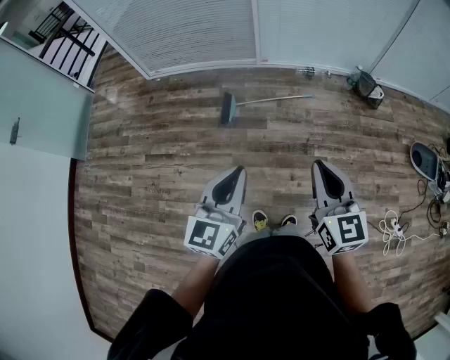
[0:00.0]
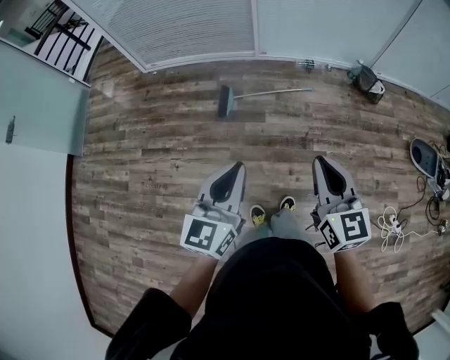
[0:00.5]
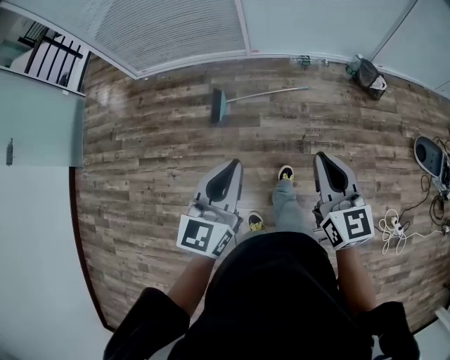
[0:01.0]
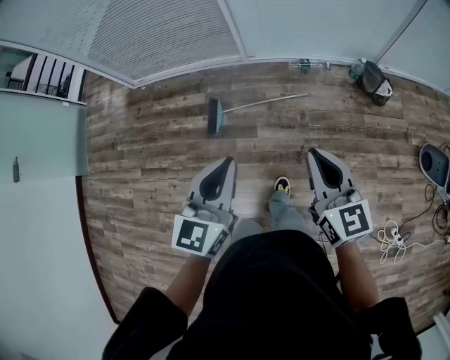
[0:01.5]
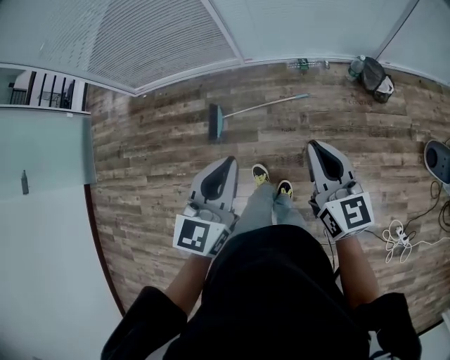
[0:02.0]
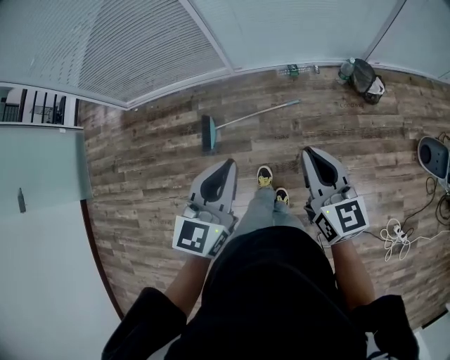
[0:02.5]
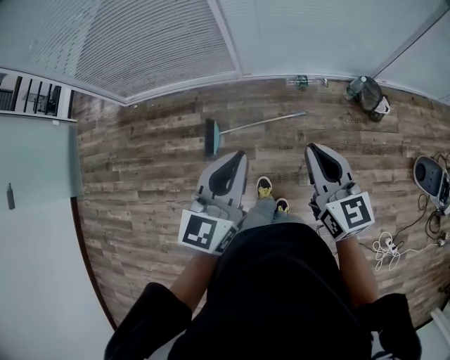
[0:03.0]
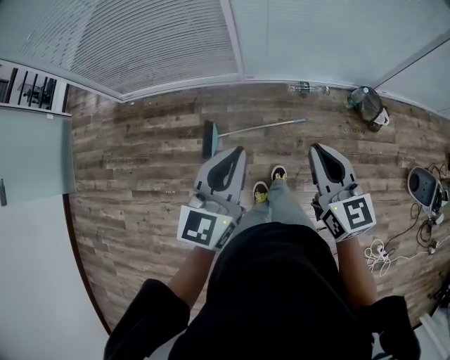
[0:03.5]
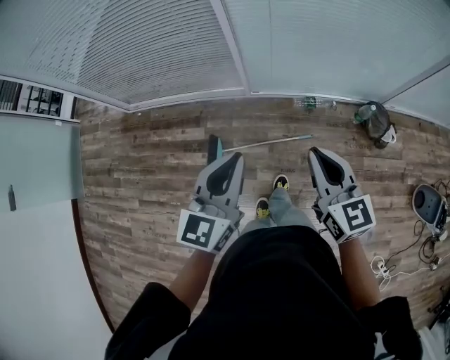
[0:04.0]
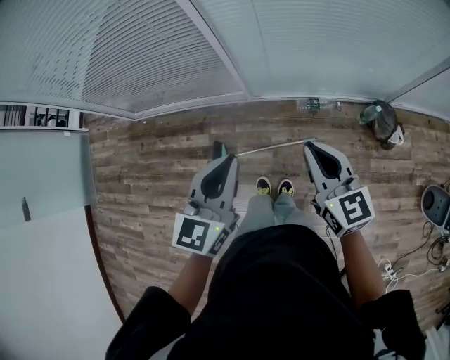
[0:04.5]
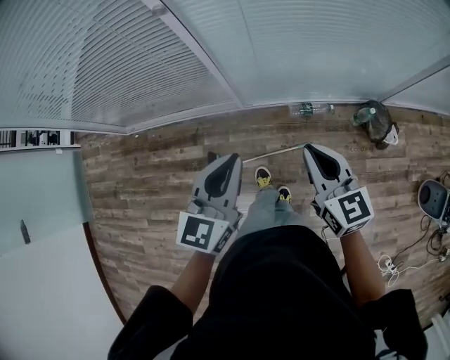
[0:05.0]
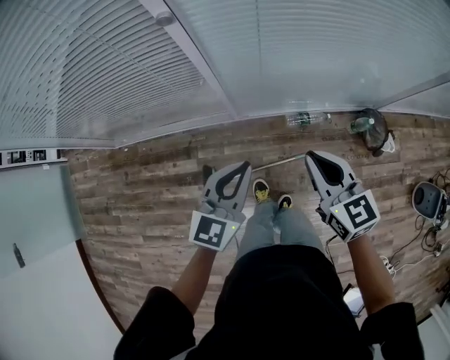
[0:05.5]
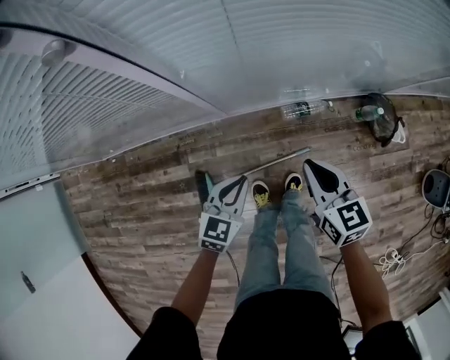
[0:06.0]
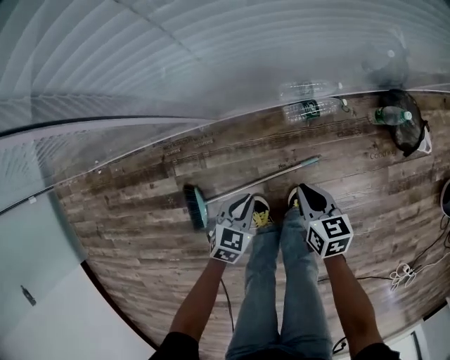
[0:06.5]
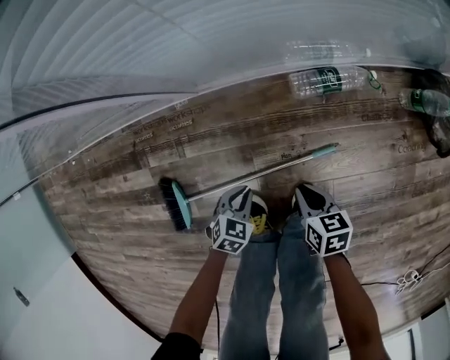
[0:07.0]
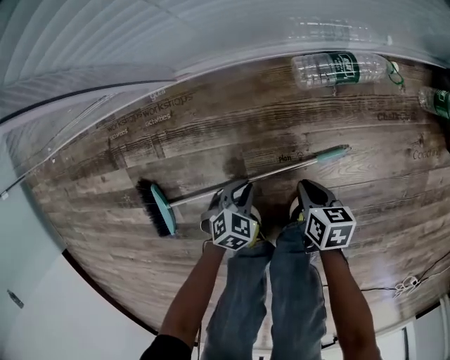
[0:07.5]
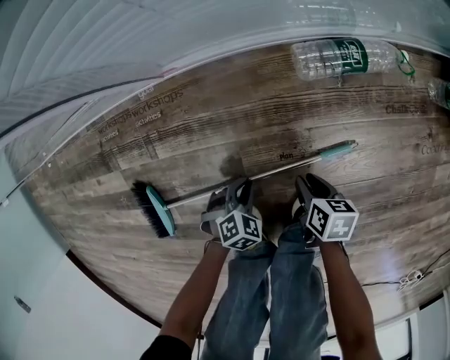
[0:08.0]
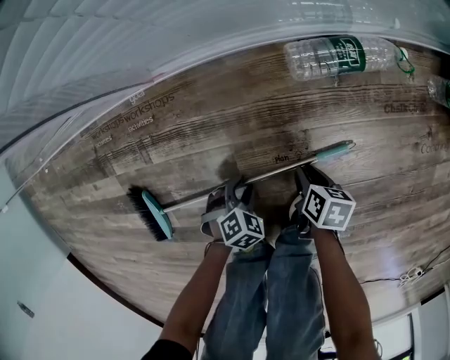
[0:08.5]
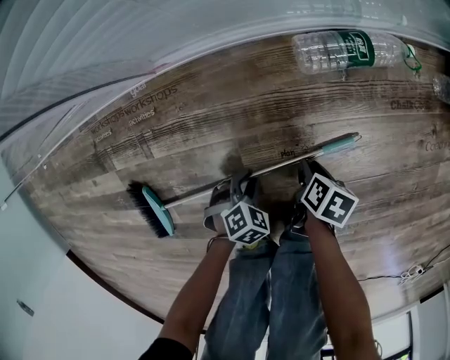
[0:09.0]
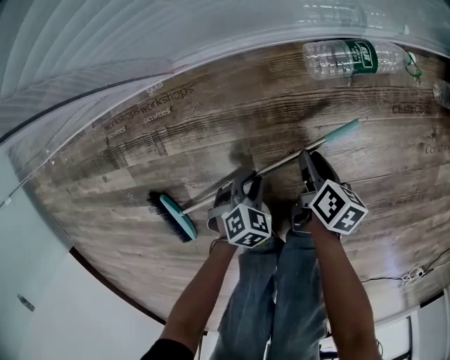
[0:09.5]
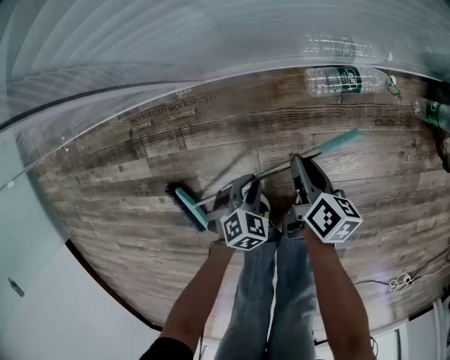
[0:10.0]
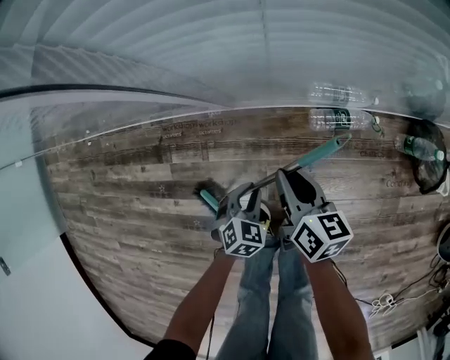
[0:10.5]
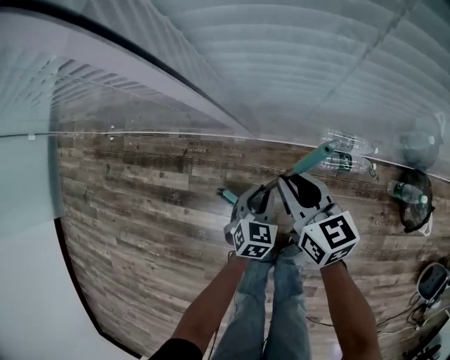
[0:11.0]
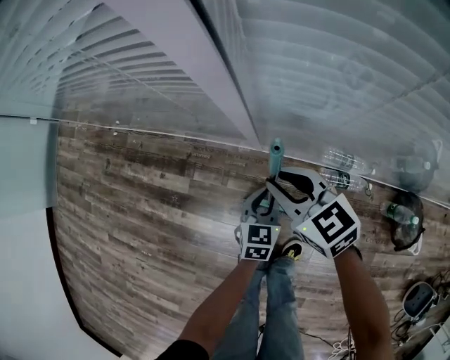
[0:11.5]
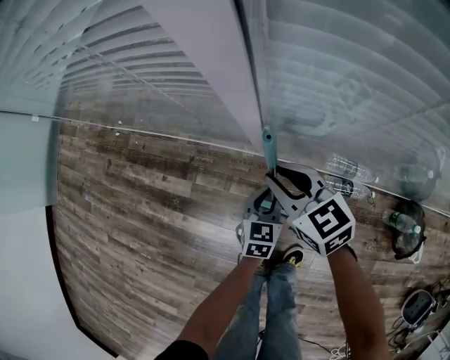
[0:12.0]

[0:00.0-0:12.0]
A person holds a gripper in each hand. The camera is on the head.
0:00.0 to 0:02.0: The two grippers go about 40 cm forward and to the right.
0:02.0 to 0:04.0: The grippers both shift forward by approximately 25 cm.
0:04.0 to 0:06.0: The left gripper shifts about 40 cm downward and forward, and turns by about 30 degrees; the right gripper is displaced forward and downward by approximately 35 cm.
0:06.0 to 0:08.0: The two grippers go some 70 cm downward. The left gripper tips its fingers downward by approximately 40 degrees. Meanwhile the right gripper tips its fingers downward by approximately 30 degrees, and opens up.
0:08.0 to 0:10.0: The grippers both shift upward by approximately 15 cm. The right gripper changes its angle by some 30 degrees.
0:10.0 to 0:12.0: Both grippers travel together upward, about 35 cm. The left gripper tilts its fingers some 30 degrees upward; the right gripper rotates around the line of its fingers by roughly 70 degrees, counterclockwise from behind.

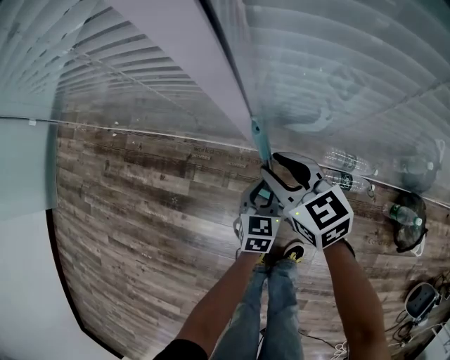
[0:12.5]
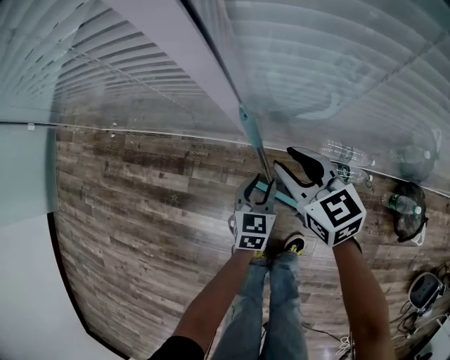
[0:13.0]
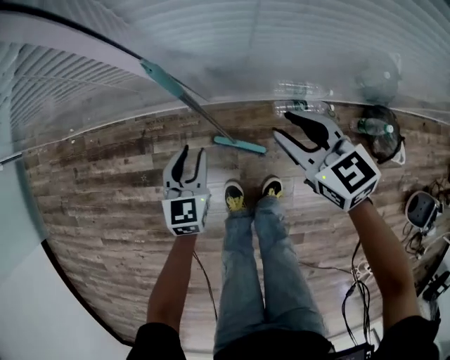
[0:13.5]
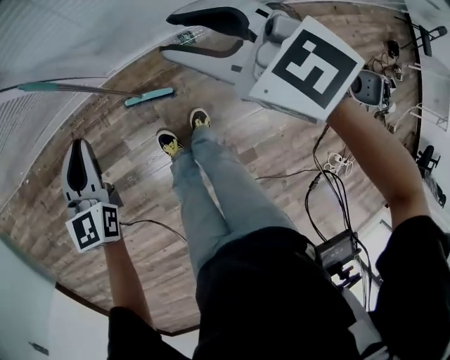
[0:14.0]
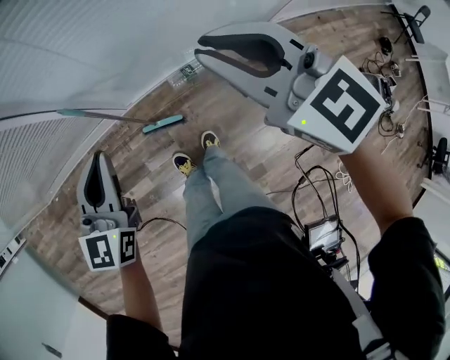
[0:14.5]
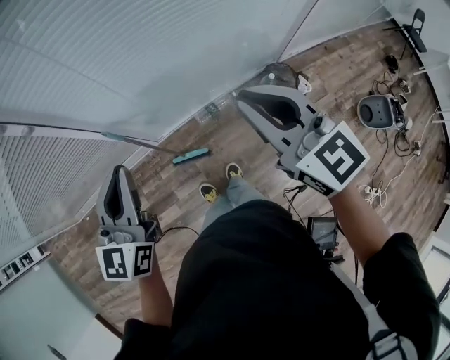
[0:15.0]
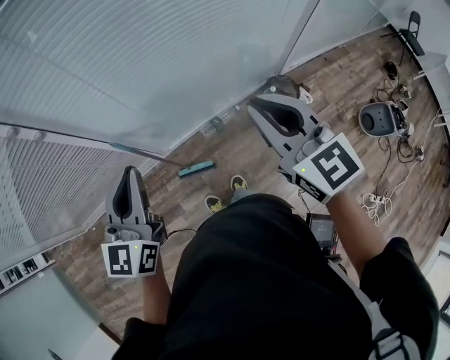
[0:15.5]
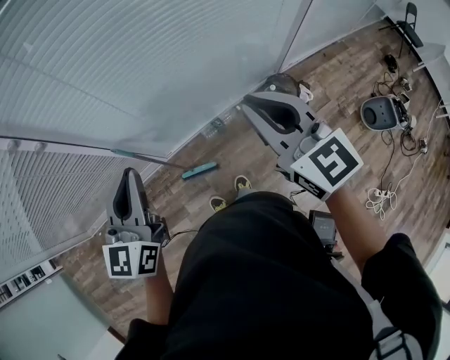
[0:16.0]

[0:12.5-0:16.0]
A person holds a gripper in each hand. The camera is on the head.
0:12.5 to 0:14.5: The two grippers go about 50 cm upward. The left gripper turns by approximately 40 degrees, and closes its fingers. The right gripper swivels roughly 30 degrees.
0:14.5 to 0:16.0: The right gripper travels upward, to the right and backward by approximately 10 cm, and turns by some 20 degrees, while the left gripper heads upward, covering about 15 cm.

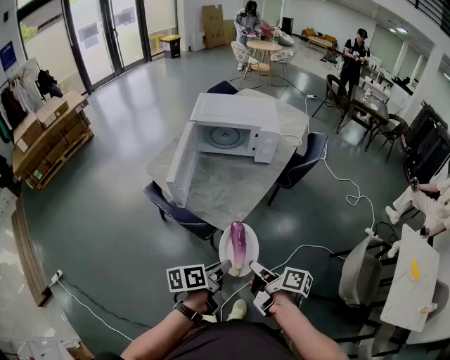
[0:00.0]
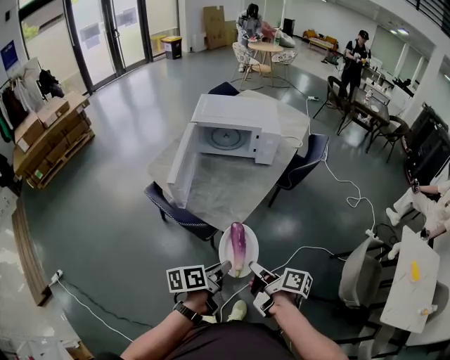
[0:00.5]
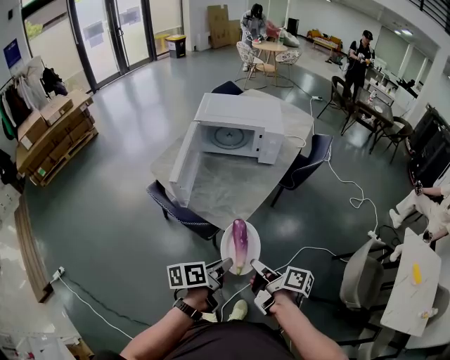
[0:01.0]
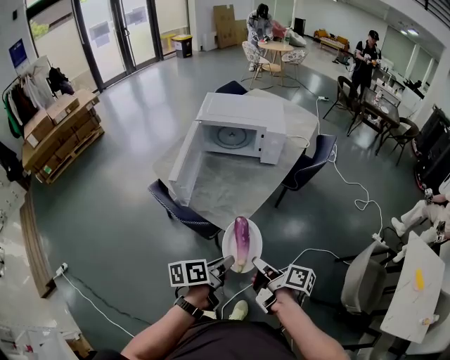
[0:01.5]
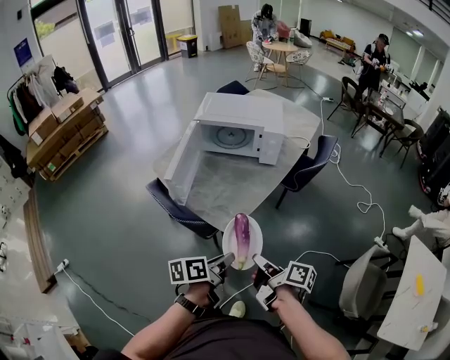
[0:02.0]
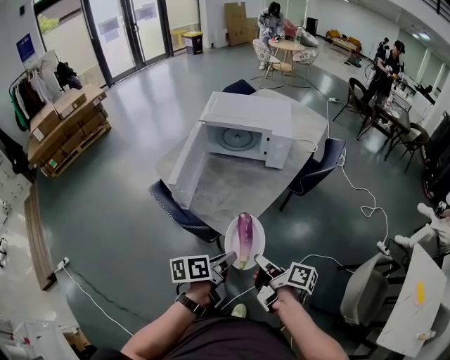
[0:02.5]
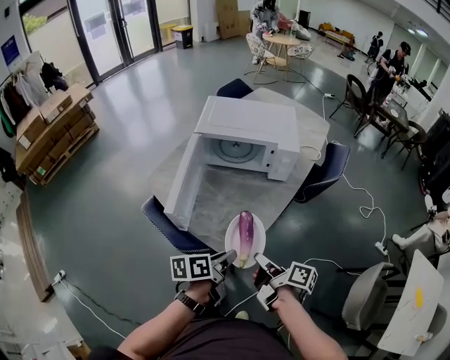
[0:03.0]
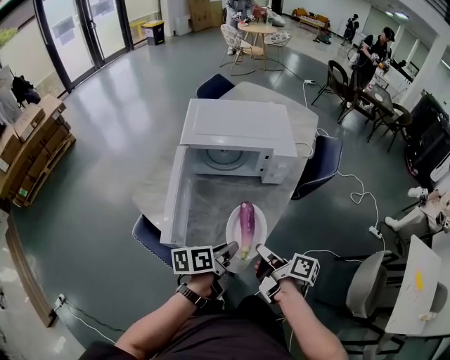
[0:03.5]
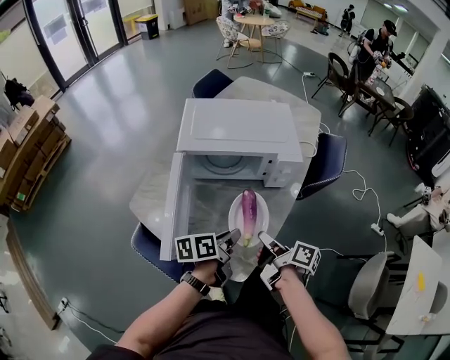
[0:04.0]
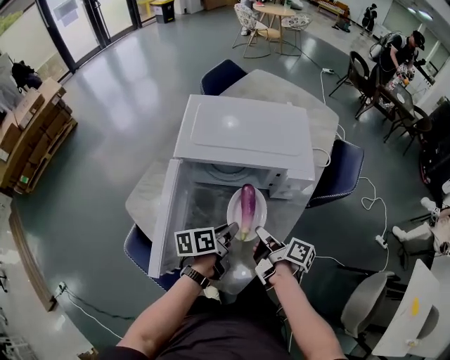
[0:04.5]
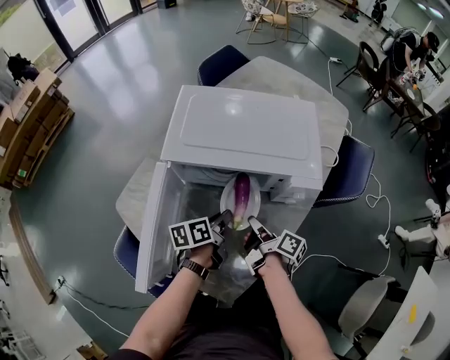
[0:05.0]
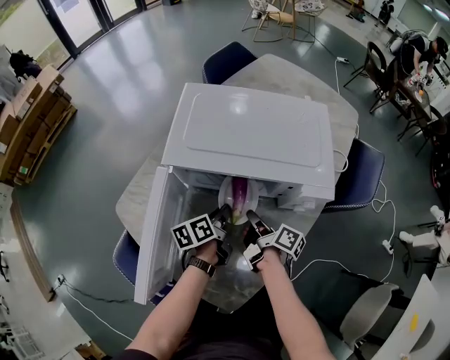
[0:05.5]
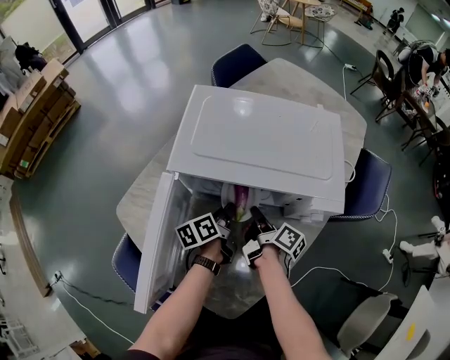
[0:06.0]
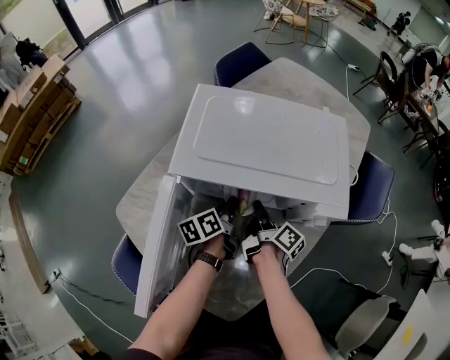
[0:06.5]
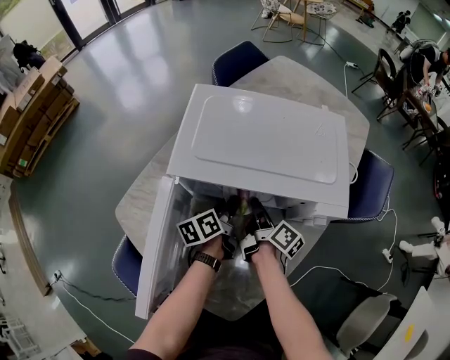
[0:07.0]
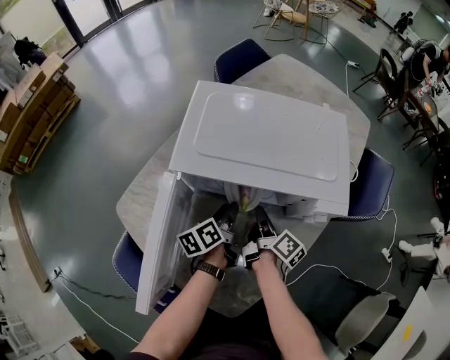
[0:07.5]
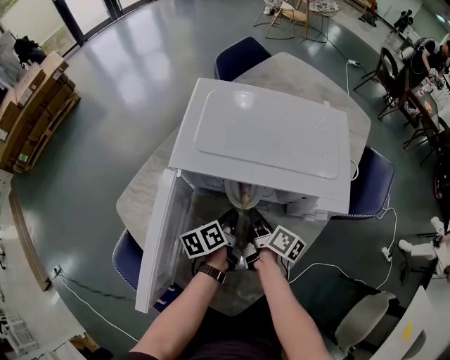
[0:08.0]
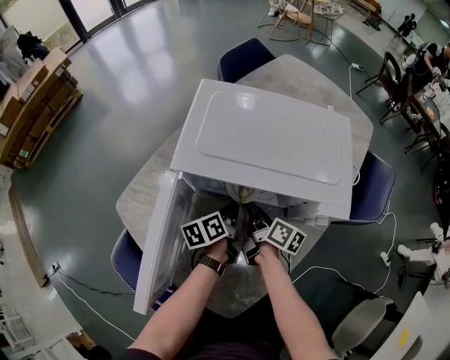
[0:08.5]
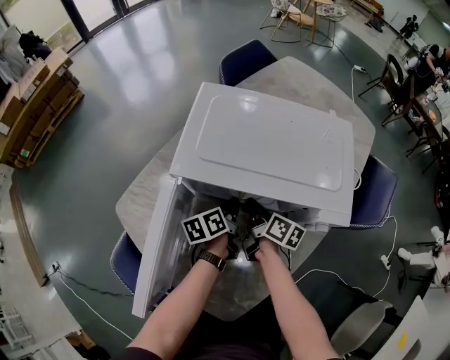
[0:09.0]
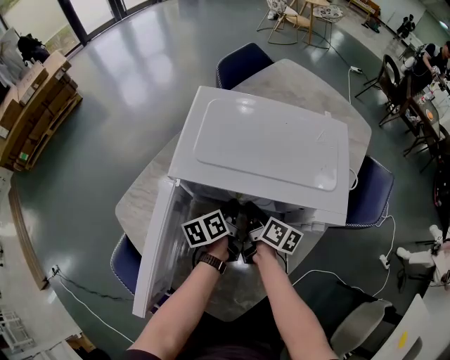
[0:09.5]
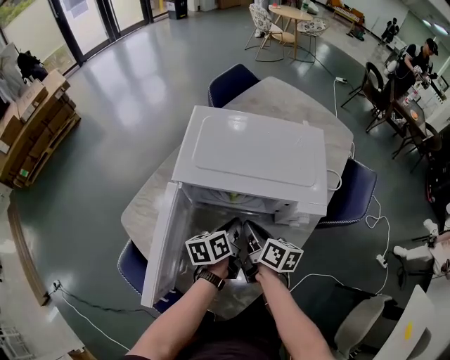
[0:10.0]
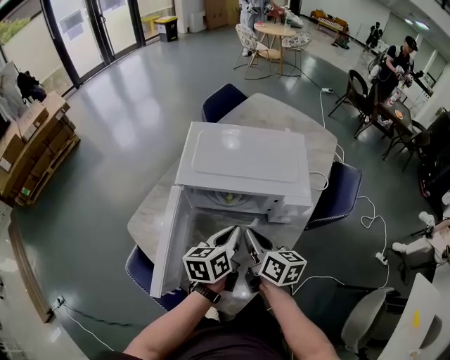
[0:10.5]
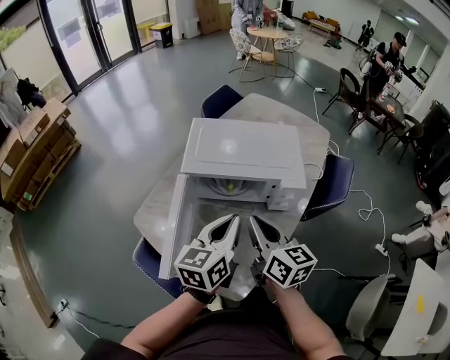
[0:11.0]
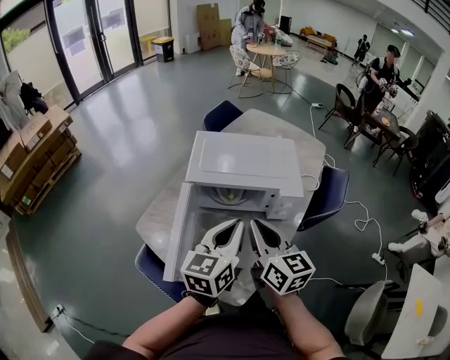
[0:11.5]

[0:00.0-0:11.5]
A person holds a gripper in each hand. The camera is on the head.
0:00.0 to 0:02.0: The left gripper moves approximately 5 cm, while the right gripper ends up approximately 5 cm from where it was.
0:02.0 to 0:04.0: The two grippers go approximately 30 cm forward.
0:04.0 to 0:06.0: Both grippers move forward and downward, some 25 cm. The left gripper turns by roughly 30 degrees.
0:06.0 to 0:07.5: The grippers make only small movements.
0:07.5 to 0:09.5: The right gripper moves some 5 cm, and swivels approximately 20 degrees, while the left gripper closes its fingers.
0:09.5 to 0:11.5: The two grippers go roughly 40 cm upward and backward. The left gripper rolls clockwise, seen from behind, by roughly 40 degrees. Meanwhile the right gripper changes its angle by some 50 degrees.
